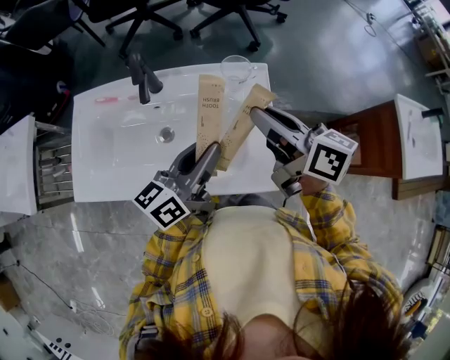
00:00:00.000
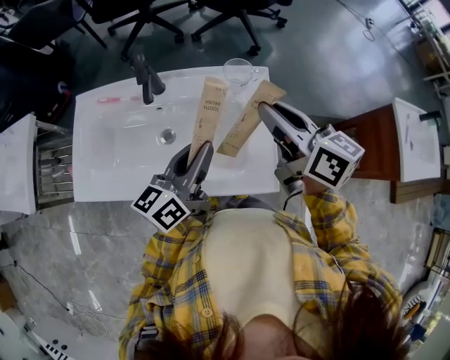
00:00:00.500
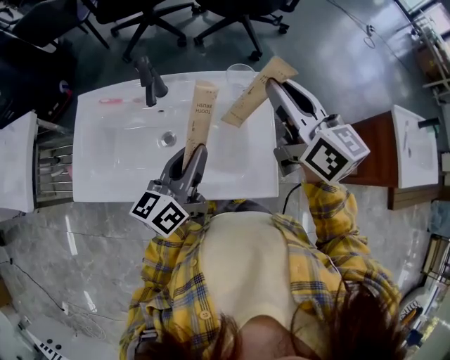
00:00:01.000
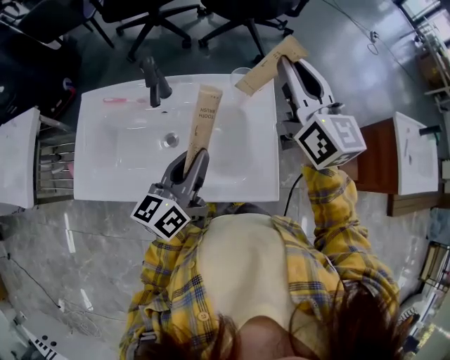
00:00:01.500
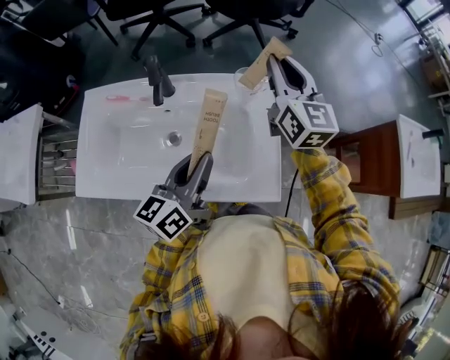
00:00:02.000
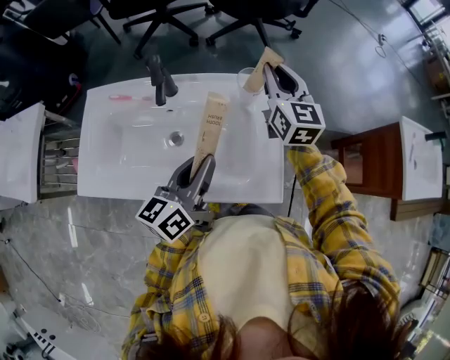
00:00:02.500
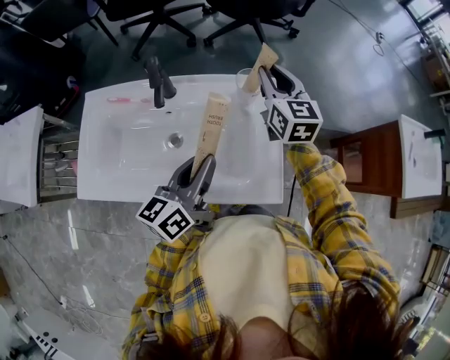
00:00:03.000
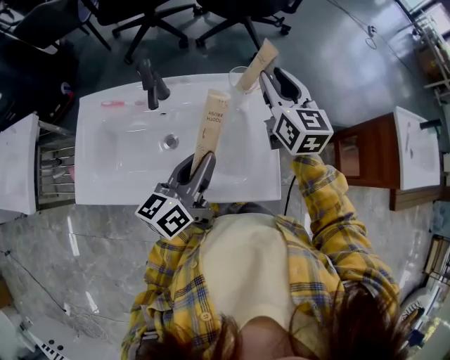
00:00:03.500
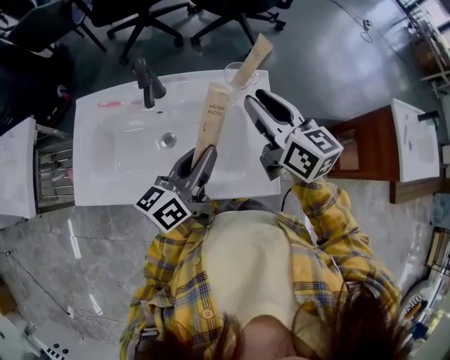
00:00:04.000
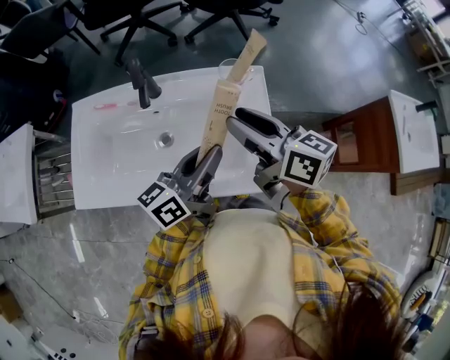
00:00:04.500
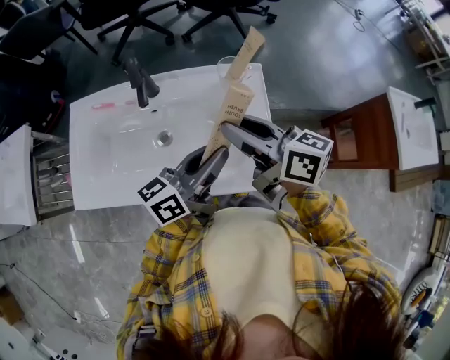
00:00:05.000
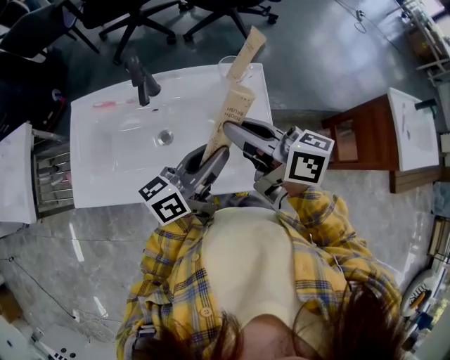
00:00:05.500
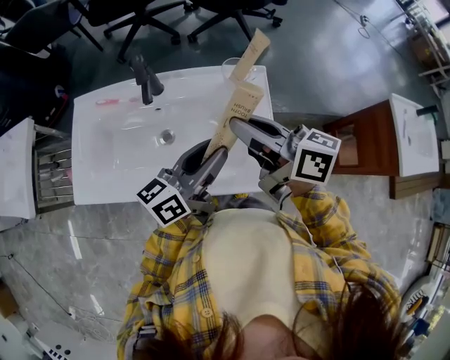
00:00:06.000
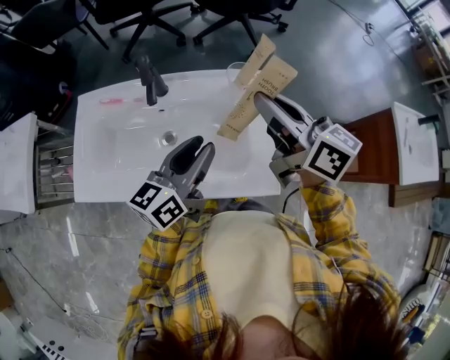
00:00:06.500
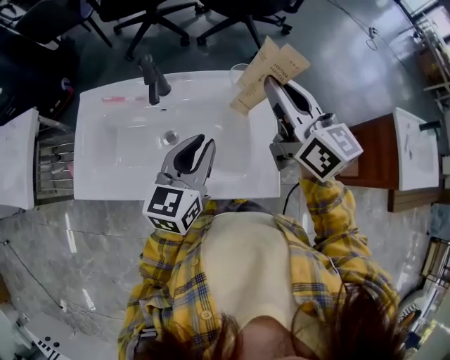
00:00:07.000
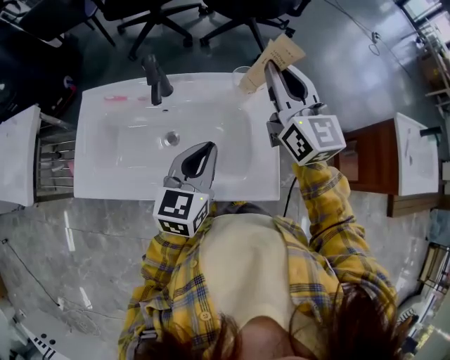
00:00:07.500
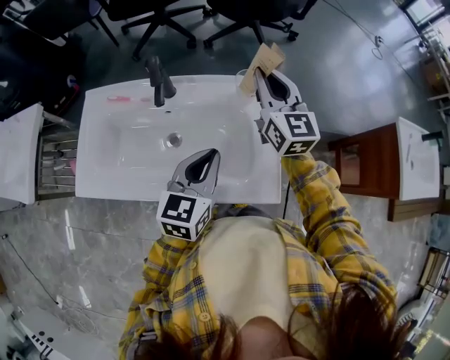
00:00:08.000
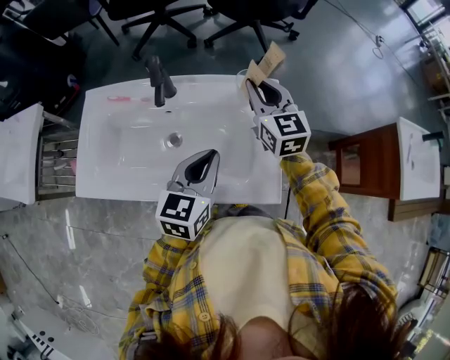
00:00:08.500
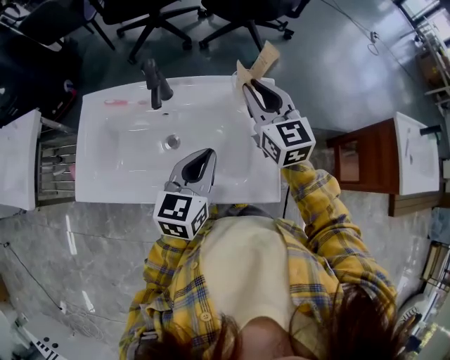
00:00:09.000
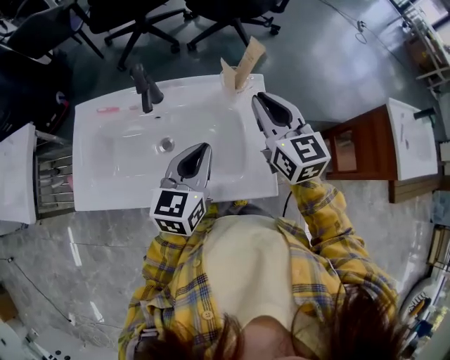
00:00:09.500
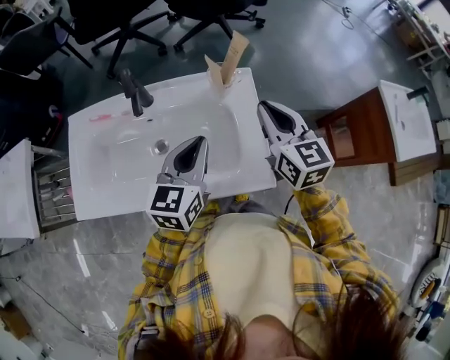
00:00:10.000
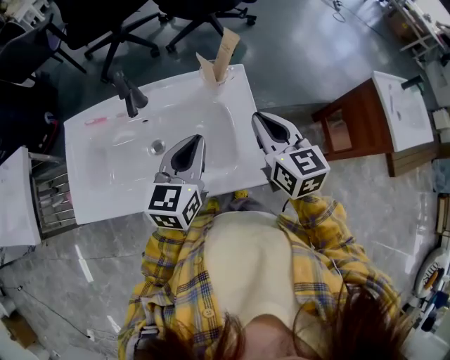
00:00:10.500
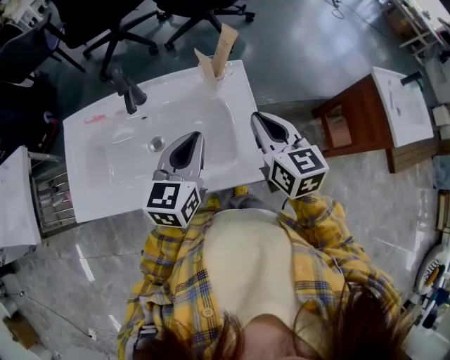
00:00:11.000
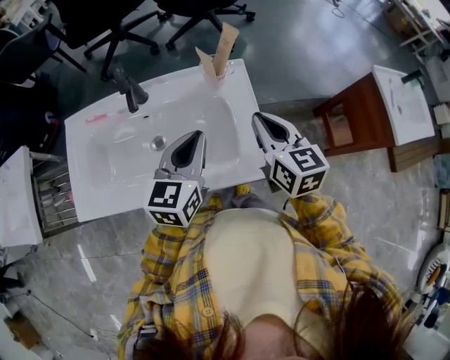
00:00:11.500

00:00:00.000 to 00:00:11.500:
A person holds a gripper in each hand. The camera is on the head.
00:00:00.000 to 00:00:02.000: The right gripper is displaced forward by approximately 15 cm, and changes its angle by roughly 50 degrees.
00:00:02.000 to 00:00:04.000: The right gripper moves backward, some 10 cm, and swivels some 30 degrees.
00:00:04.000 to 00:00:06.000: The right gripper moves backward, roughly 5 cm, and rotates approximately 30 degrees.
00:00:06.000 to 00:00:07.500: The right gripper goes some 15 cm forward, to the right and upward, and rotates around the line of its fingers by roughly 40 degrees, counterclockwise from behind, while the left gripper turns by approximately 40 degrees, and closes up.
00:00:07.500 to 00:00:09.500: The right gripper shifts about 10 cm downward.
00:00:09.500 to 00:00:11.500: The right gripper travels backward by approximately 10 cm.

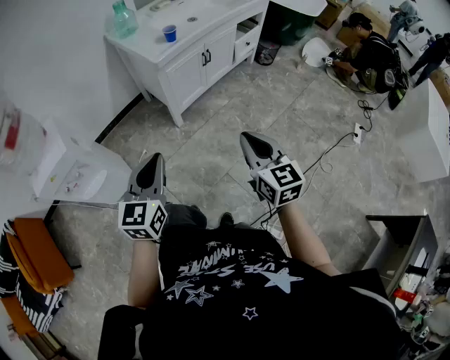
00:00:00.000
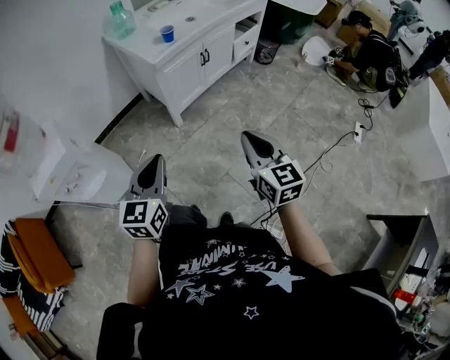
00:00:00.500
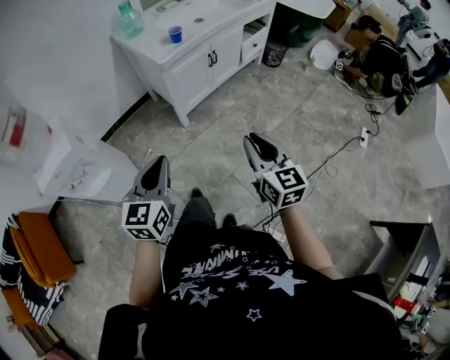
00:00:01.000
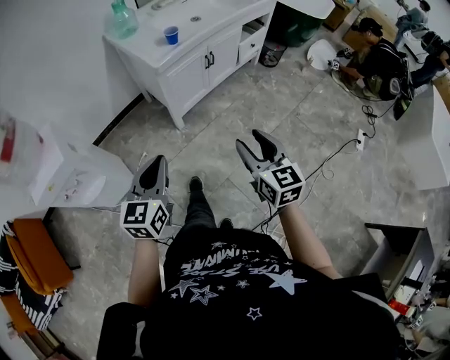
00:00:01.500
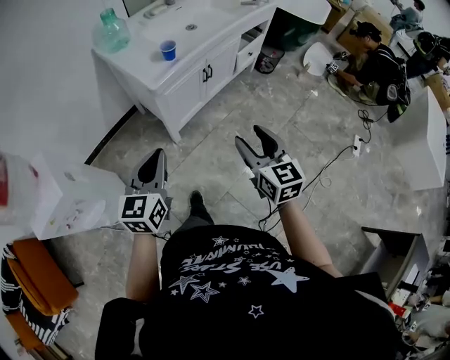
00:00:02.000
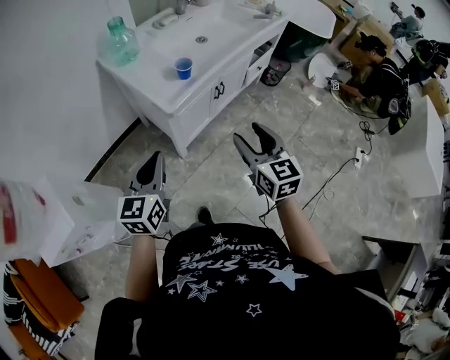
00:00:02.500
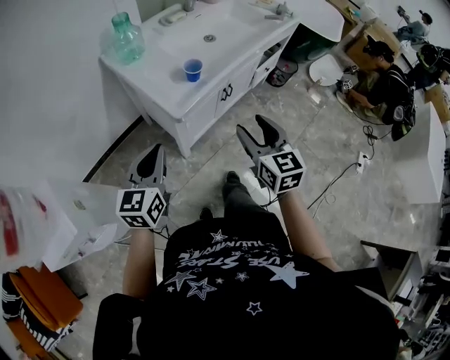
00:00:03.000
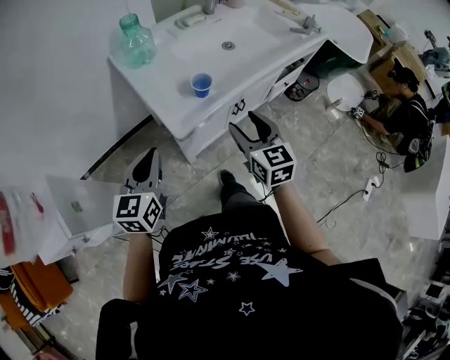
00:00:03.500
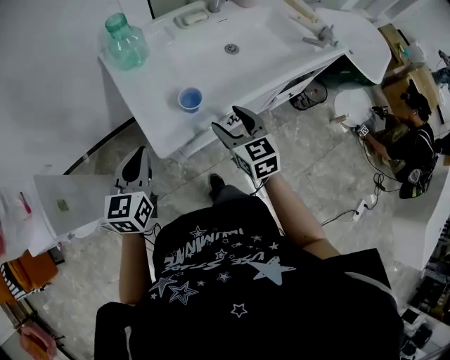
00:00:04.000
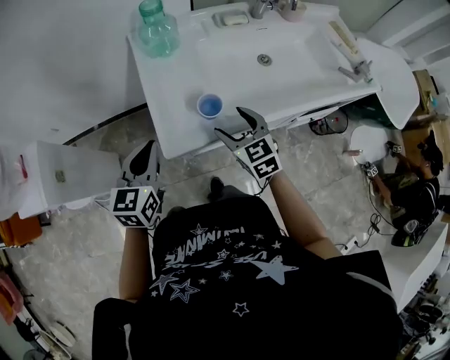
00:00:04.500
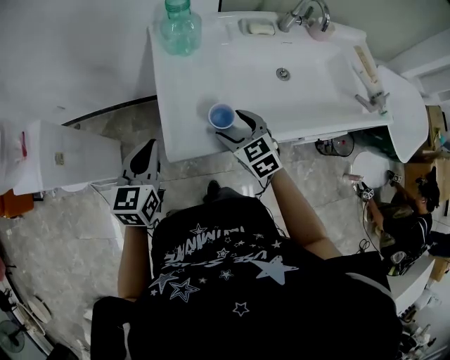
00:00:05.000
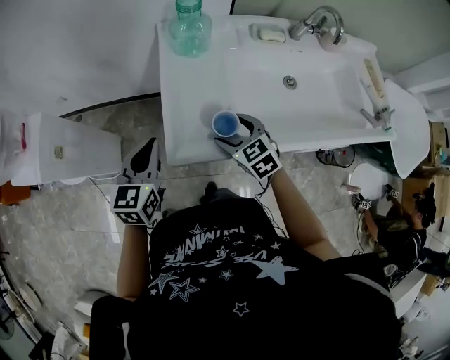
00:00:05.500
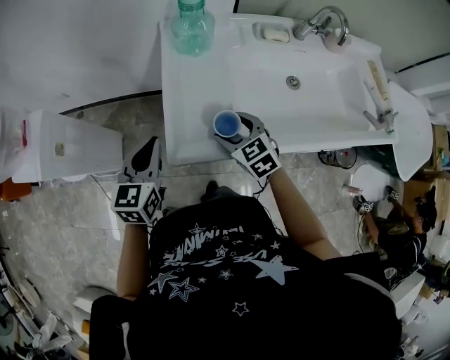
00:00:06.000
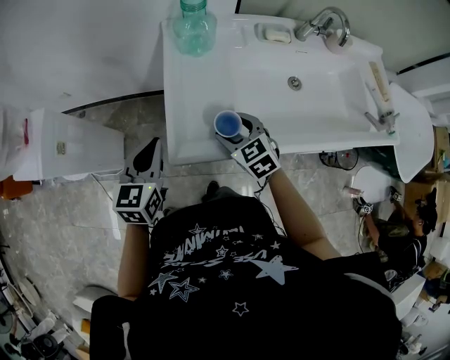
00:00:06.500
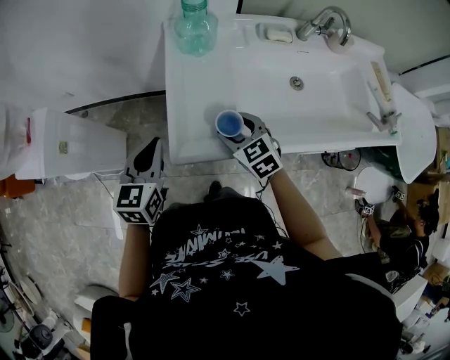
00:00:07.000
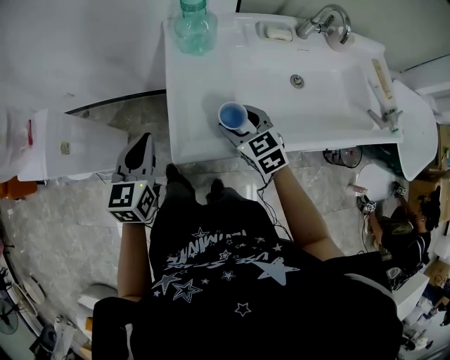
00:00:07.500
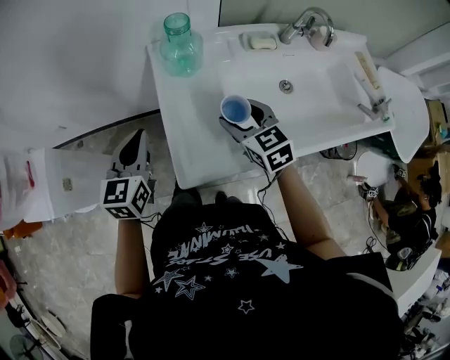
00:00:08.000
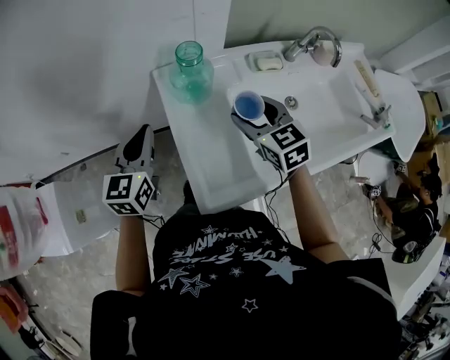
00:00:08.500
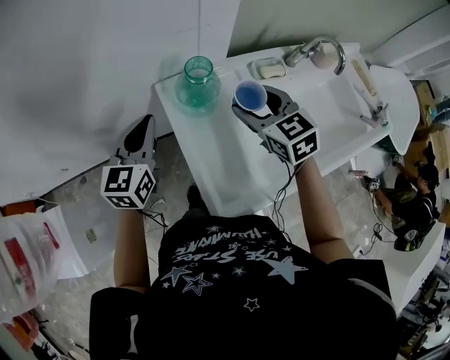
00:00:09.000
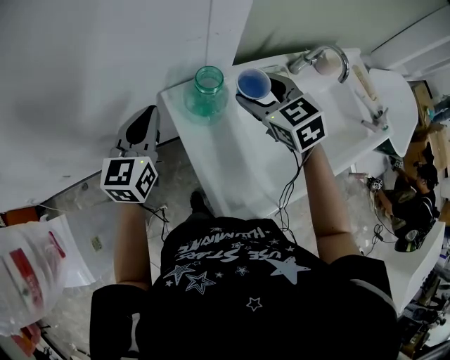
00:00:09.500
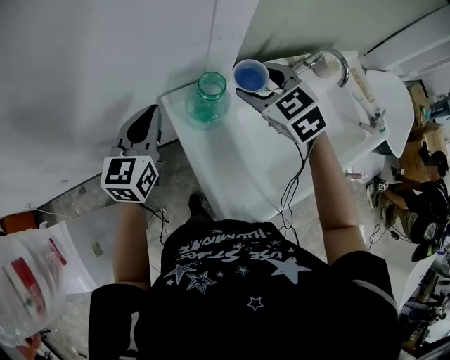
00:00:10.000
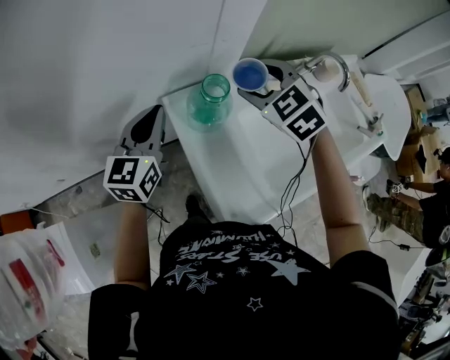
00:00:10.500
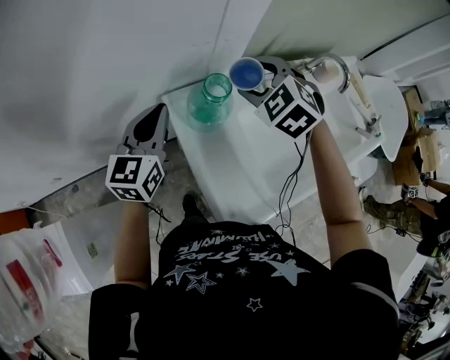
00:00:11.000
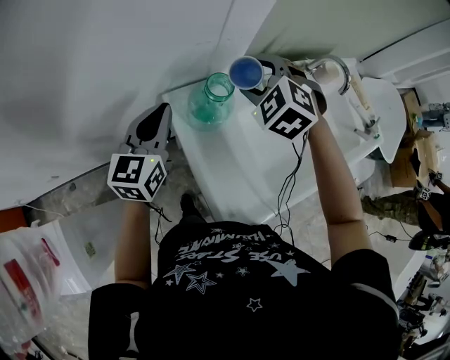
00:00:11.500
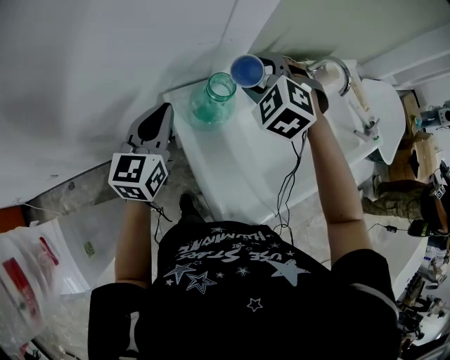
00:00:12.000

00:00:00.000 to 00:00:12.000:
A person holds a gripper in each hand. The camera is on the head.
00:00:00.000 to 00:00:02.000: The grippers both shift forward by some 20 cm. The right gripper opens.
00:00:02.000 to 00:00:04.000: The grippers both shift forward by approximately 35 cm. The left gripper turns by roughly 20 degrees, while the right gripper changes its angle by roughly 30 degrees.
00:00:04.000 to 00:00:06.000: The left gripper changes place by roughly 5 cm, and rotates approximately 20 degrees, while the right gripper moves approximately 15 cm, and rotates about 40 degrees.
00:00:06.000 to 00:00:08.000: The right gripper is displaced upward and forward by roughly 10 cm; the left gripper goes roughly 10 cm forward.
00:00:08.000 to 00:00:10.000: The left gripper heads forward, covering approximately 25 cm, while the right gripper moves forward and upward, roughly 25 cm, and swivels some 20 degrees.
00:00:10.000 to 00:00:12.000: The right gripper turns by some 30 degrees.

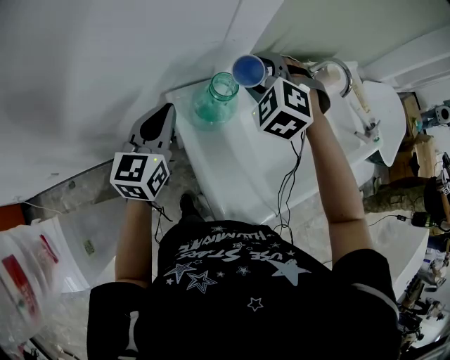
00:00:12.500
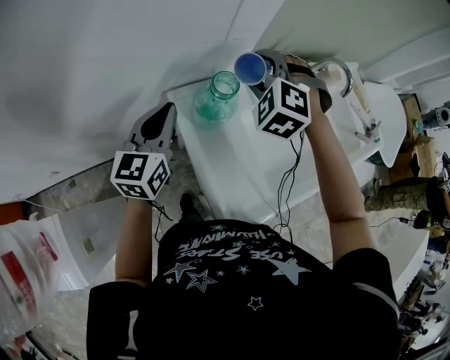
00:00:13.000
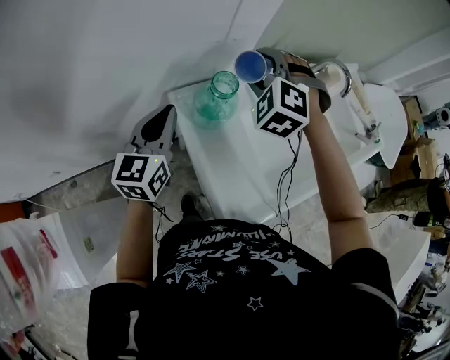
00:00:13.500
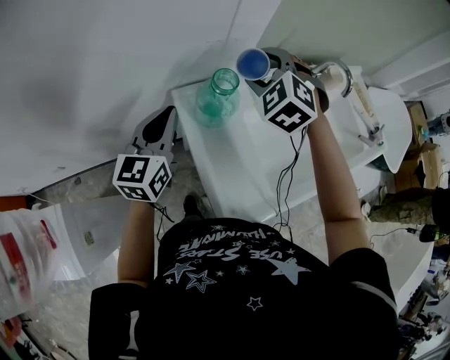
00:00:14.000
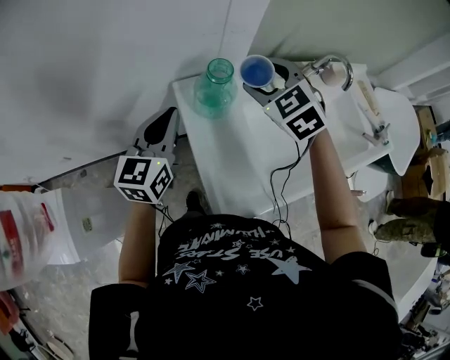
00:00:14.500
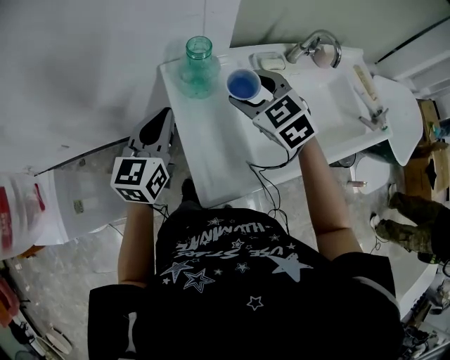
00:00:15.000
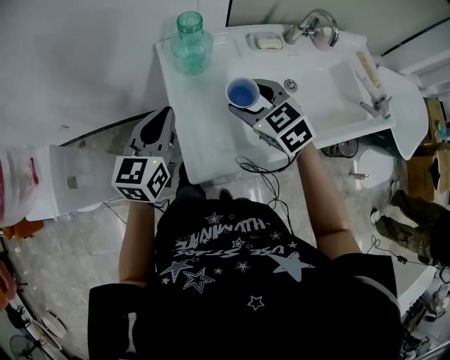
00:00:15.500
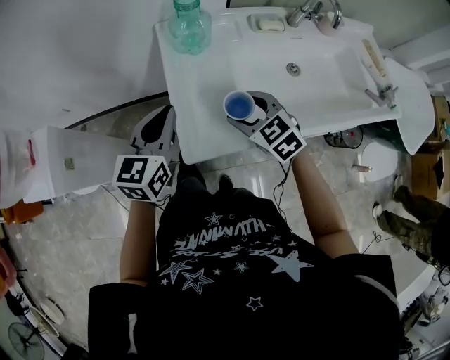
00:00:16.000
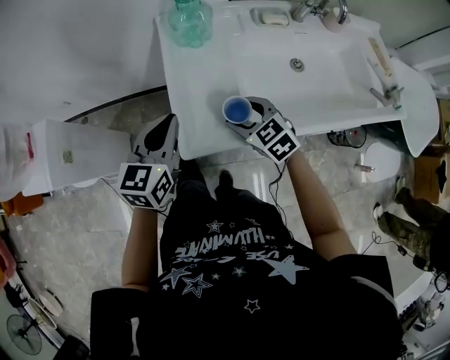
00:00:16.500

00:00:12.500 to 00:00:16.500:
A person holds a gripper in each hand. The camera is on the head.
00:00:12.500 to 00:00:14.500: Both grippers travel together backward, some 5 cm. The right gripper swivels some 30 degrees.
00:00:14.500 to 00:00:16.500: The left gripper goes roughly 20 cm backward; the right gripper moves backward and downward, roughly 35 cm, and changes its angle by about 30 degrees.
